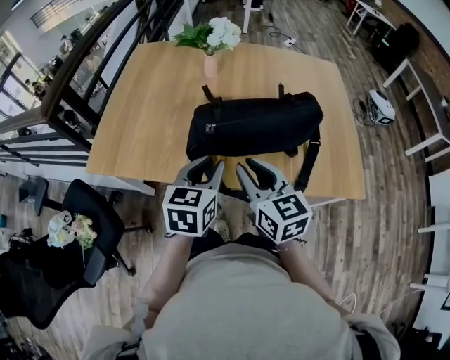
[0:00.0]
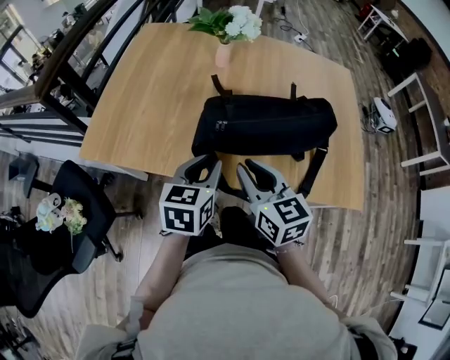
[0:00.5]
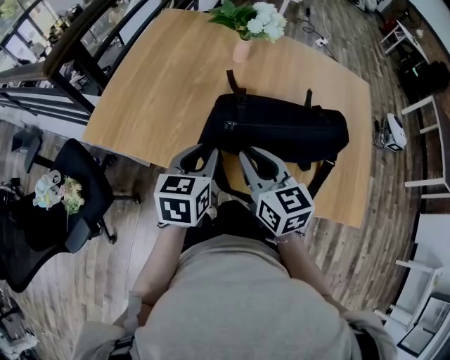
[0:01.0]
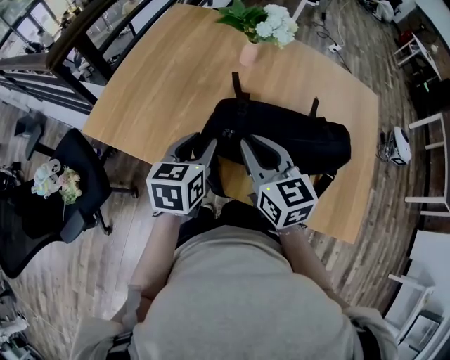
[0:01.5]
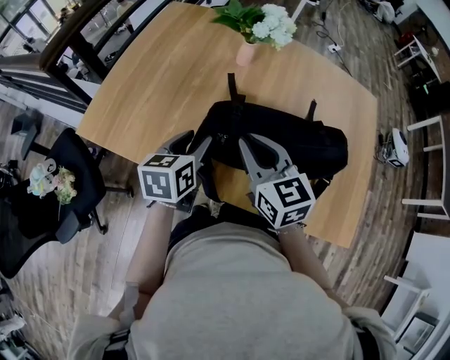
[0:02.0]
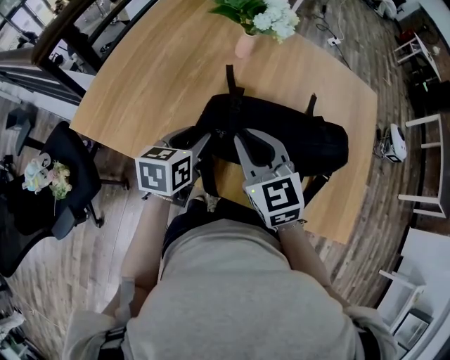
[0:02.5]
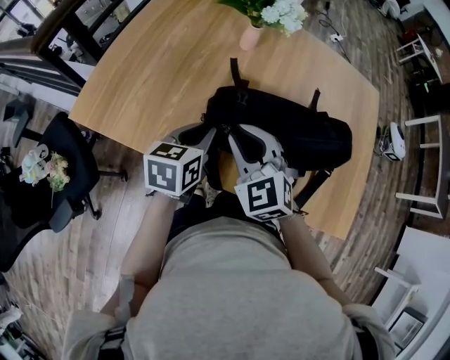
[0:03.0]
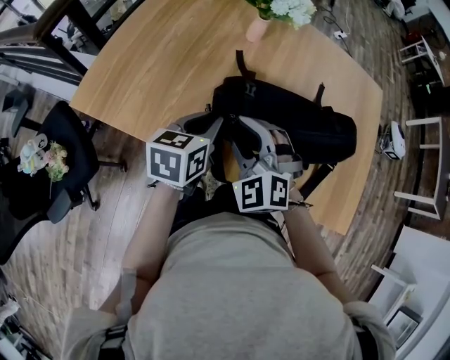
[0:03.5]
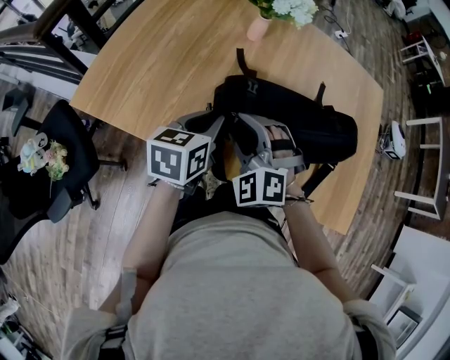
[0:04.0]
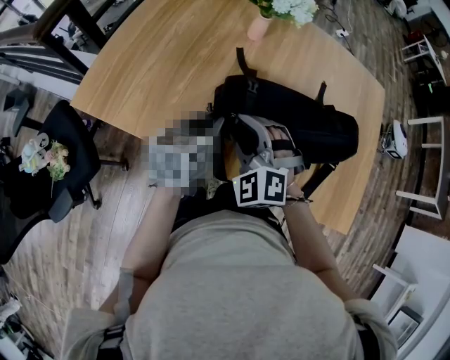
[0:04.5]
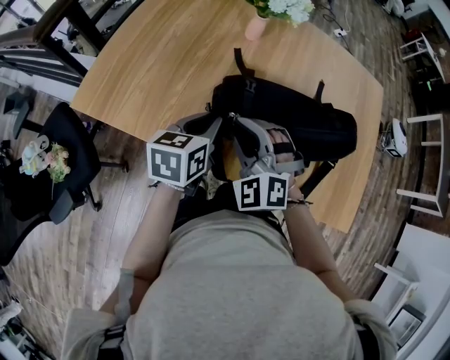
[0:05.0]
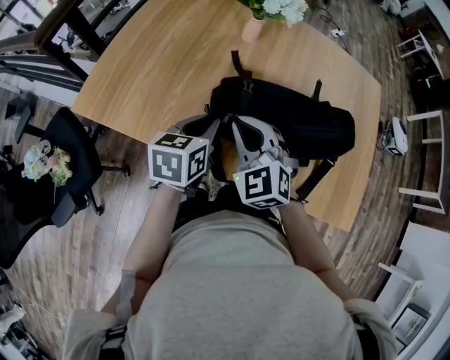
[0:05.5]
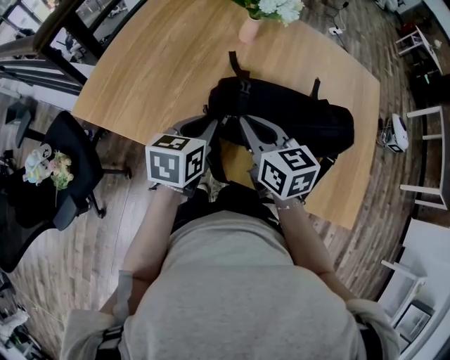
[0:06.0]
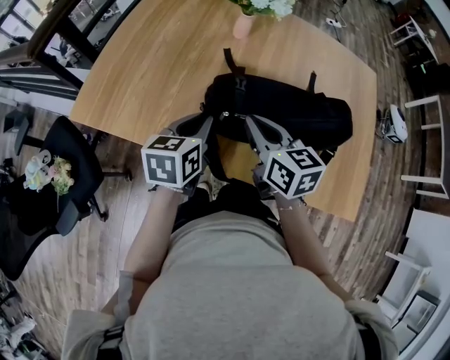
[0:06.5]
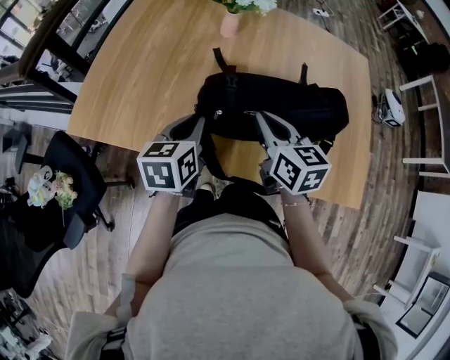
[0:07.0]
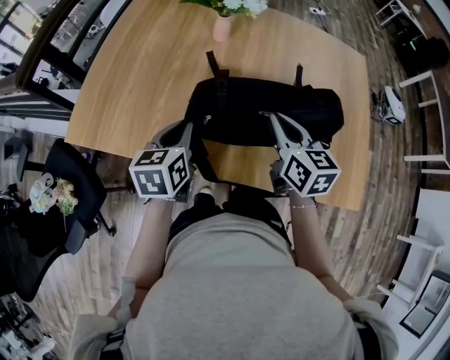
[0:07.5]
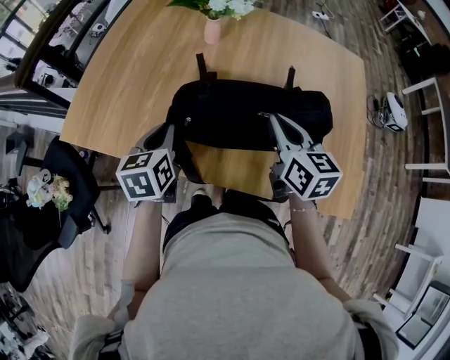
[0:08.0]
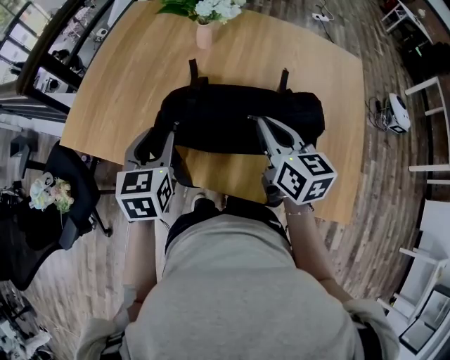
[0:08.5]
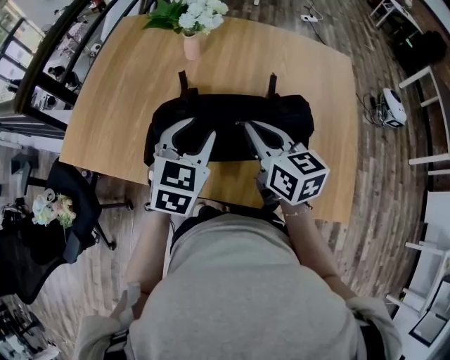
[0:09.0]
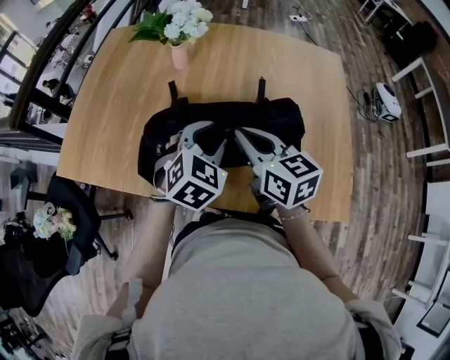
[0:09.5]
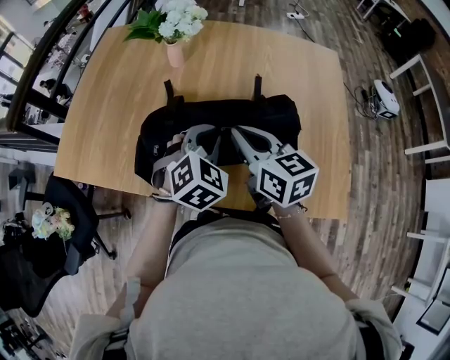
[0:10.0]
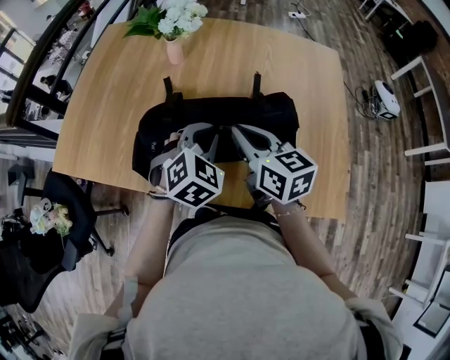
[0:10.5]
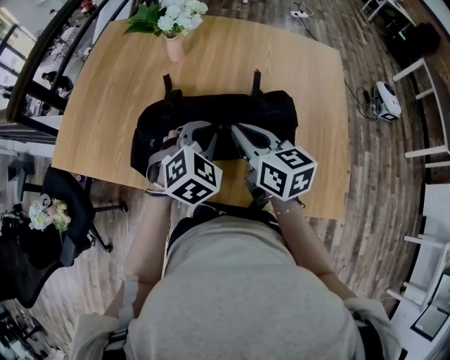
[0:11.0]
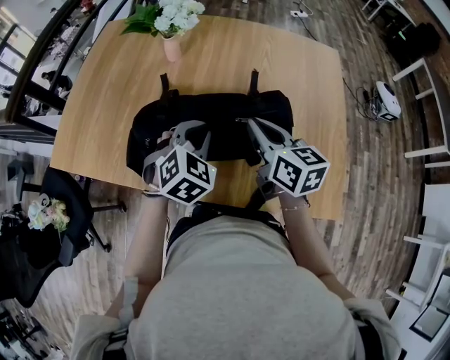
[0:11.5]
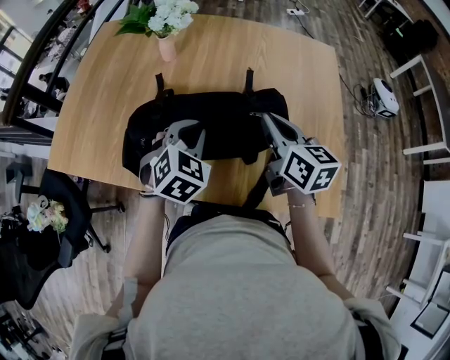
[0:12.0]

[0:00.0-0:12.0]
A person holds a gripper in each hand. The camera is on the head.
0:00.0 to 0:02.0: The right gripper shifts roughly 15 cm forward; the left gripper is displaced forward and downward by approximately 15 cm, and turns by some 20 degrees.
0:02.0 to 0:04.0: The right gripper shifts about 5 cm downward, rotates around the line of its fingers by roughly 60 degrees, counterclockwise from behind, and opens its fingers, while the left gripper closes.
0:04.0 to 0:06.0: The right gripper twists roughly 70 degrees clockwise, seen from behind, and closes its fingers.
0:06.0 to 0:08.0: The right gripper travels to the right by some 15 cm.
0:08.0 to 0:10.0: The left gripper travels to the right by about 20 cm, rolls clockwise, seen from behind, by approximately 60 degrees, and opens and closes again.
0:10.0 to 0:12.0: The right gripper heads to the right, covering about 10 cm.

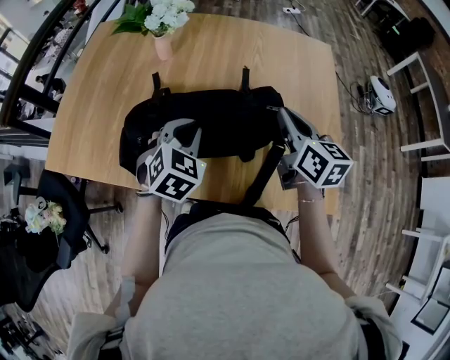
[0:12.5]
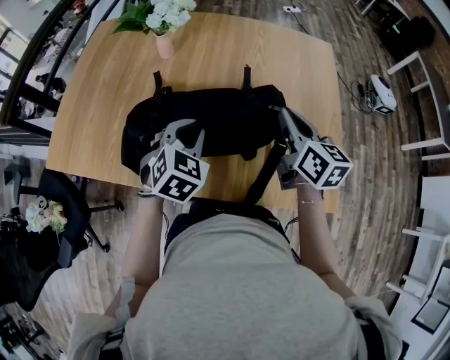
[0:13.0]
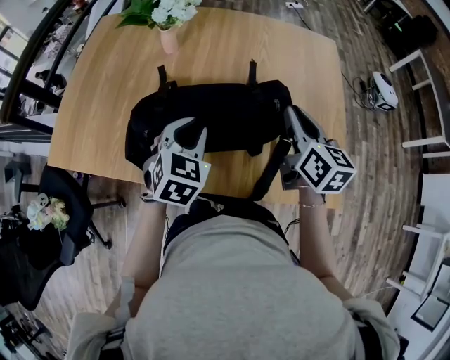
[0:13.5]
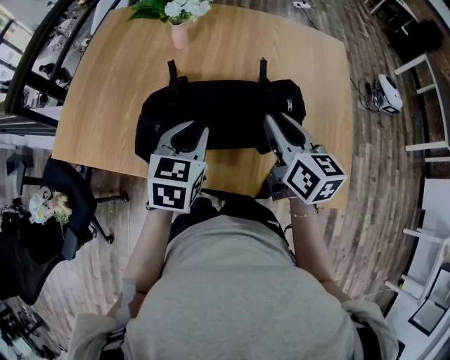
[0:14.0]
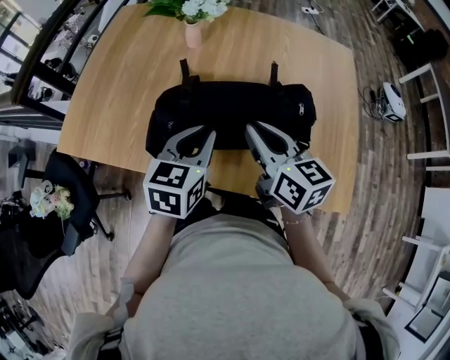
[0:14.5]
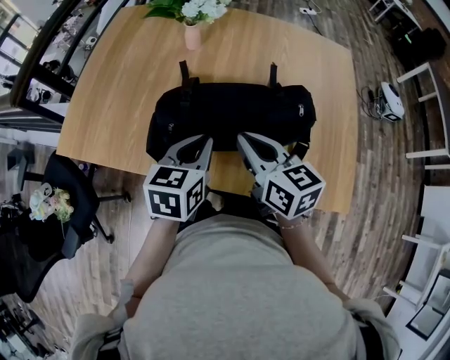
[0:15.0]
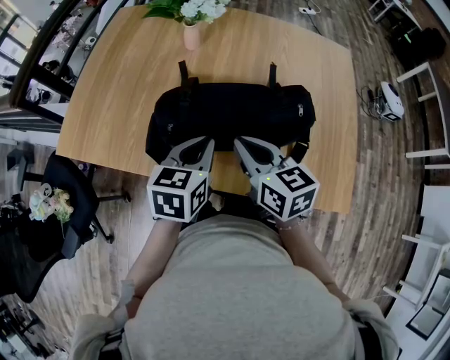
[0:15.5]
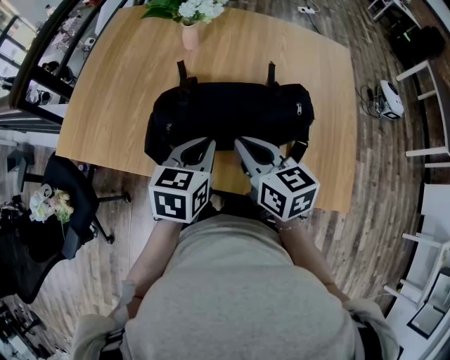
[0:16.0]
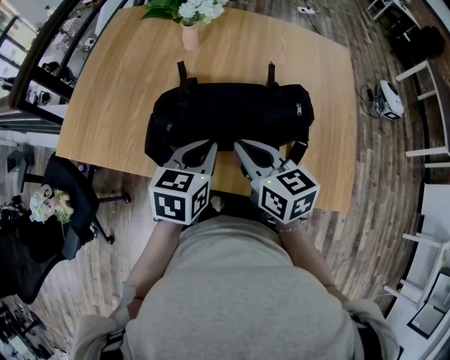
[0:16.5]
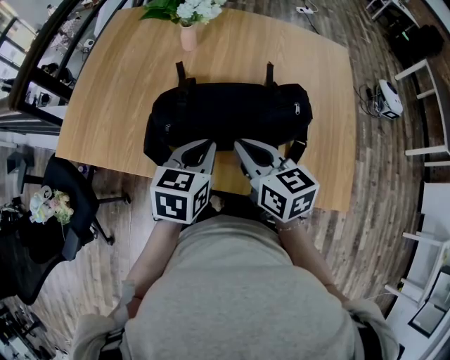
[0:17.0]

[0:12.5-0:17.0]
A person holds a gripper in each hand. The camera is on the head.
0:12.5 to 0:14.5: The left gripper shifts about 5 cm to the left, and turns by about 40 degrees. The right gripper goes roughly 15 cm to the left.
0:14.5 to 0:17.0: The grippers stay close to where they were, moving slightly.

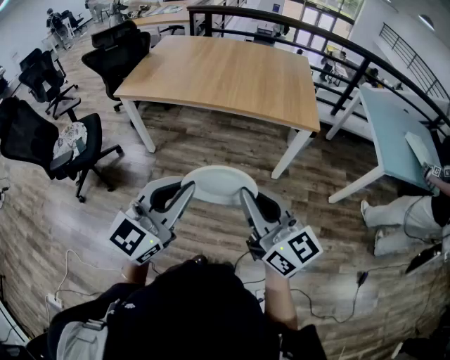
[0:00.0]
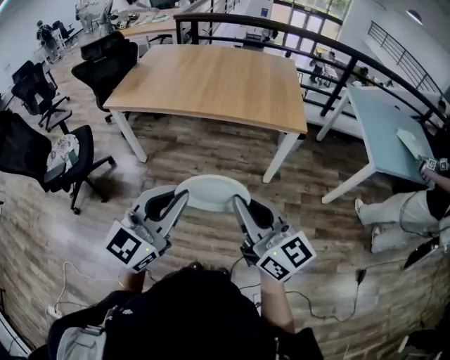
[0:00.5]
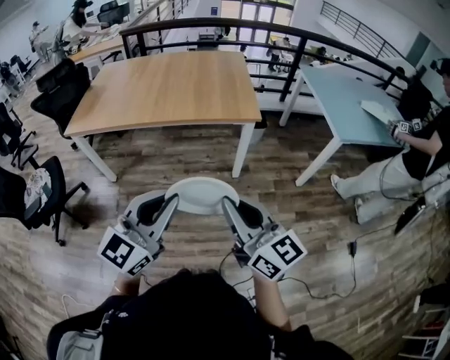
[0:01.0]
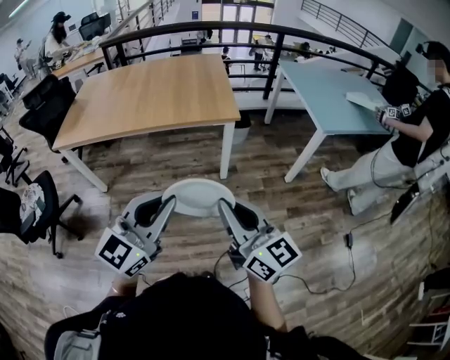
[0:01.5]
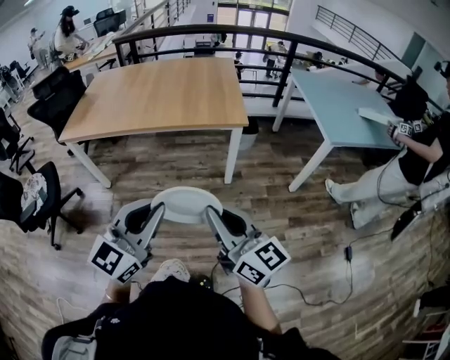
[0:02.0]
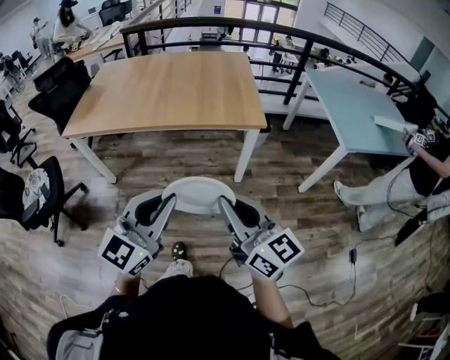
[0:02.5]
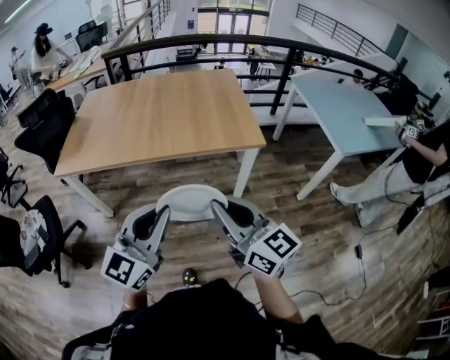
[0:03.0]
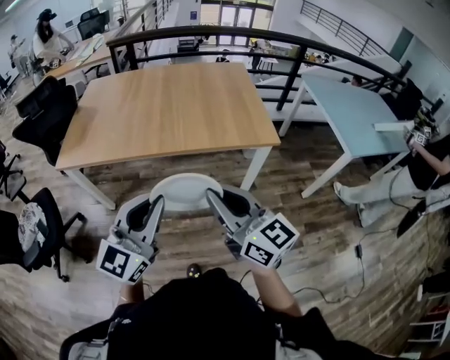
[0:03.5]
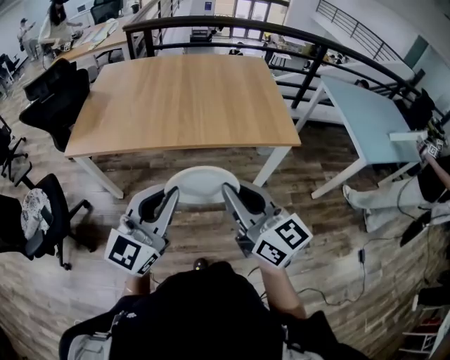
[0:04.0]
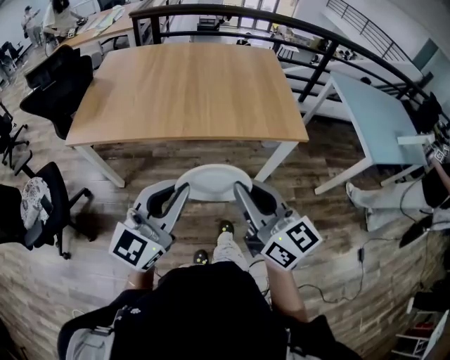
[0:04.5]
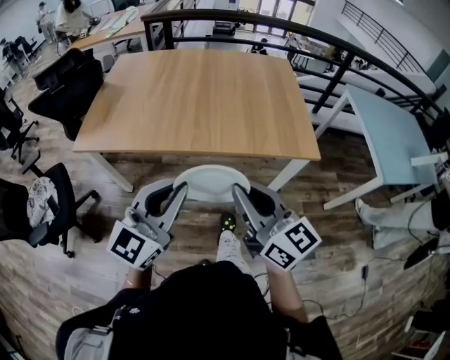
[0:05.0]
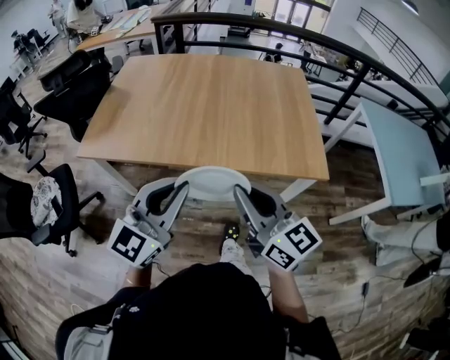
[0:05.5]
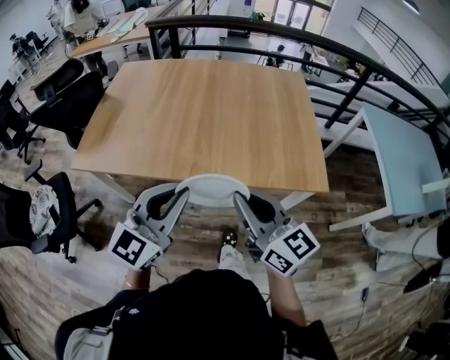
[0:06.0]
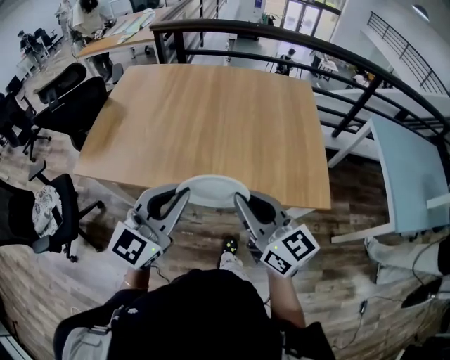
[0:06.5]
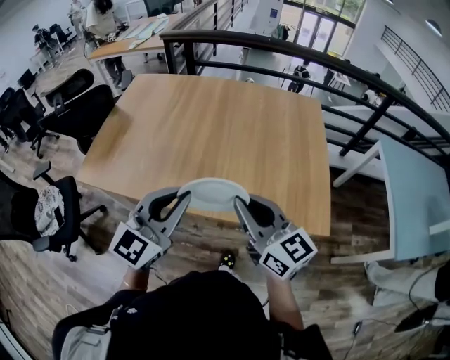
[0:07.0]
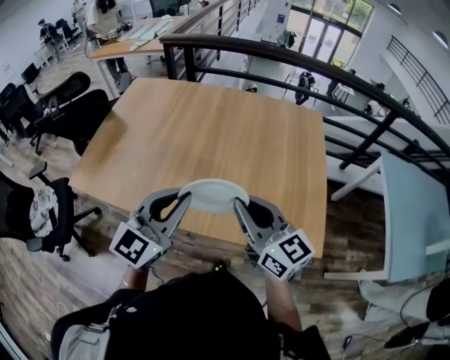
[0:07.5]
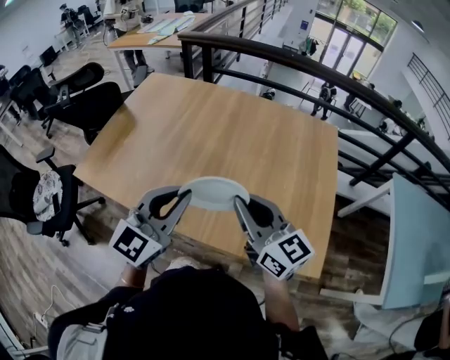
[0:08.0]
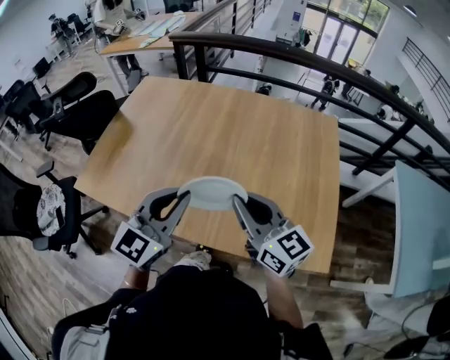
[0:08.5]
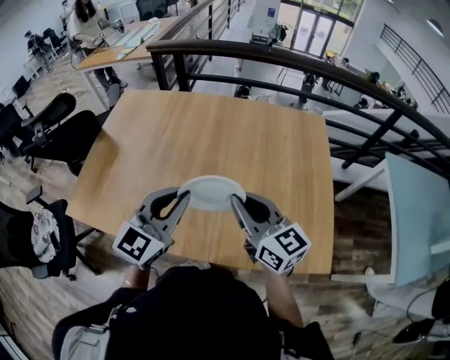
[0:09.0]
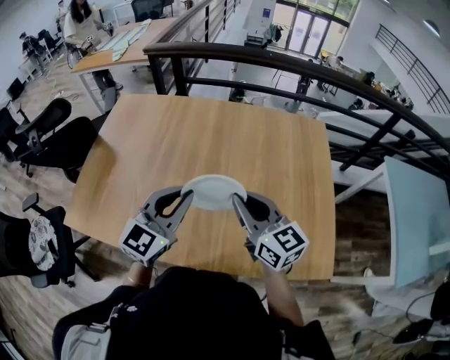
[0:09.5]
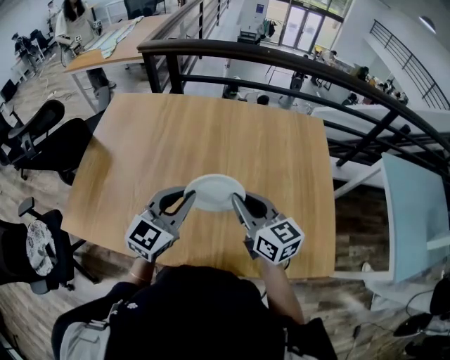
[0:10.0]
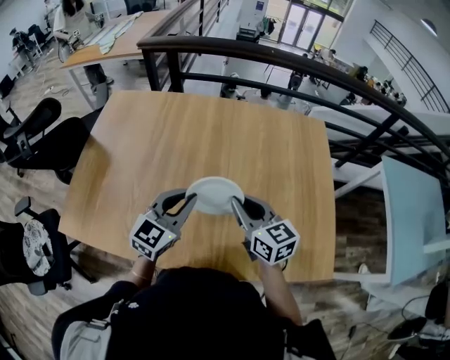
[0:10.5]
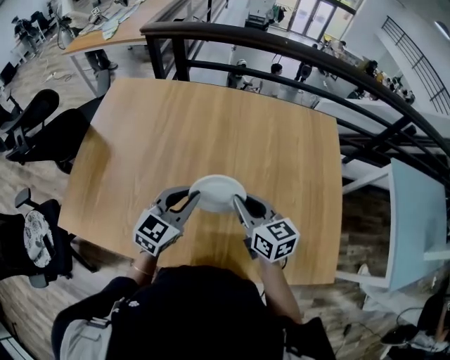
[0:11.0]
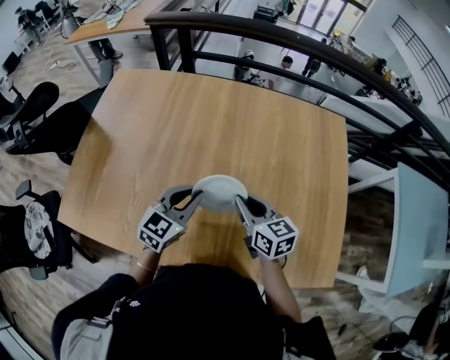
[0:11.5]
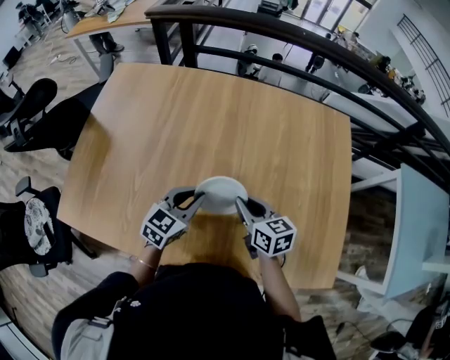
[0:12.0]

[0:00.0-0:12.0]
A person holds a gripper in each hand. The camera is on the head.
0:00.0 to 0:02.0: The grippers both shift to the right by some 15 cm.
0:02.0 to 0:04.0: The grippers both shift to the left and forward by roughly 35 cm.
0:04.0 to 0:06.0: Both grippers move forward, roughly 20 cm.
0:06.0 to 0:08.0: The grippers both shift forward by roughly 25 cm.
0:08.0 to 0:10.0: Both grippers travel together forward and downward, some 20 cm.
0:10.0 to 0:12.0: Both grippers travel together downward and forward, about 15 cm. The right gripper turns by about 20 degrees. The left gripper changes its angle by roughly 20 degrees.
